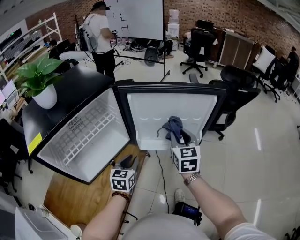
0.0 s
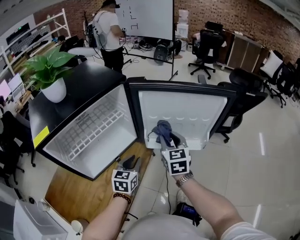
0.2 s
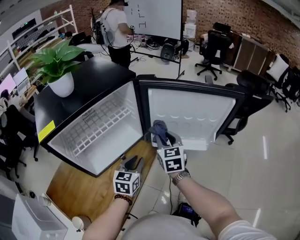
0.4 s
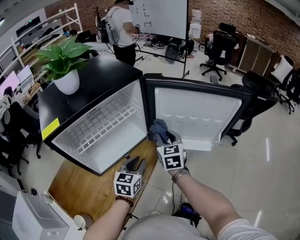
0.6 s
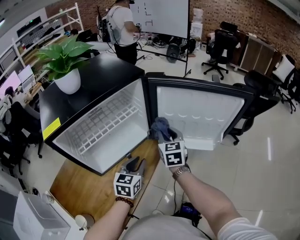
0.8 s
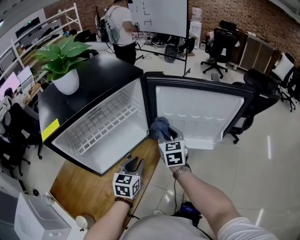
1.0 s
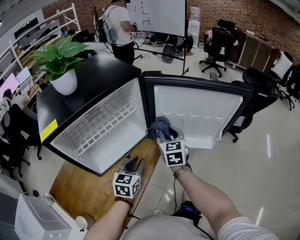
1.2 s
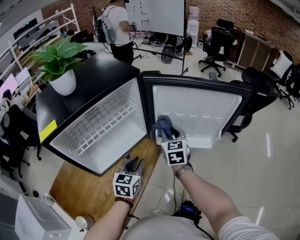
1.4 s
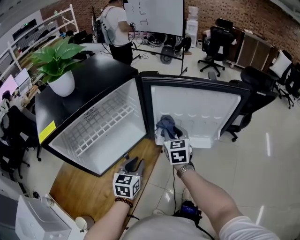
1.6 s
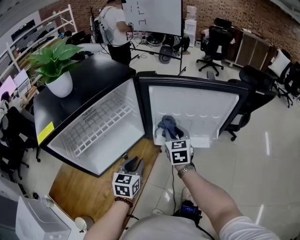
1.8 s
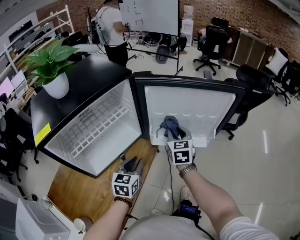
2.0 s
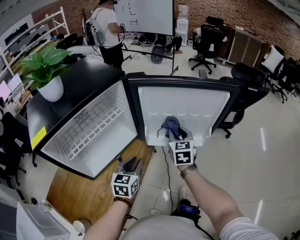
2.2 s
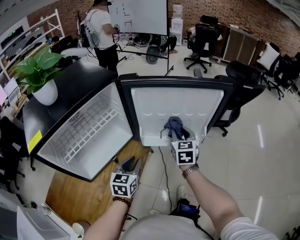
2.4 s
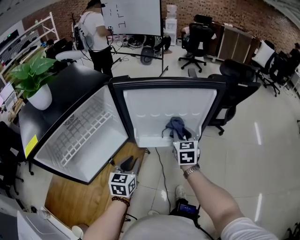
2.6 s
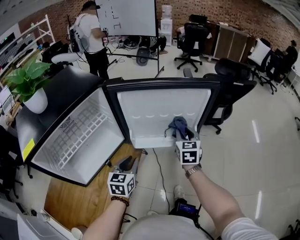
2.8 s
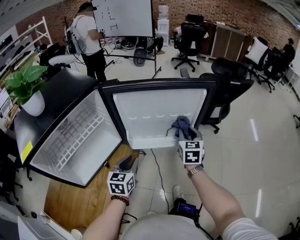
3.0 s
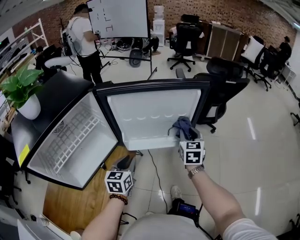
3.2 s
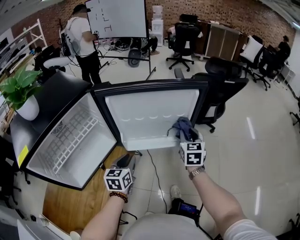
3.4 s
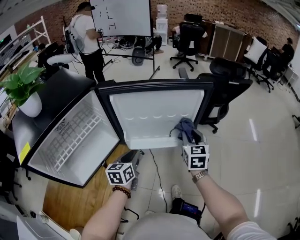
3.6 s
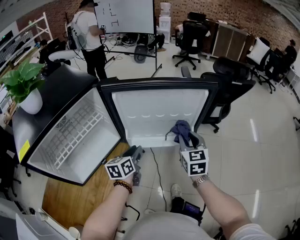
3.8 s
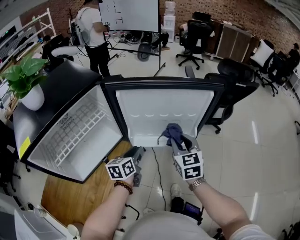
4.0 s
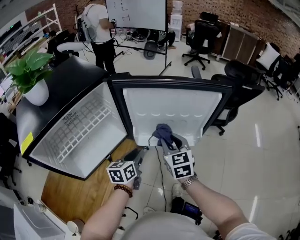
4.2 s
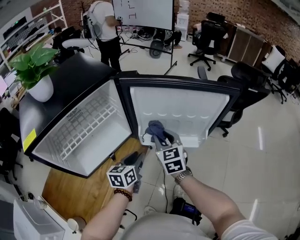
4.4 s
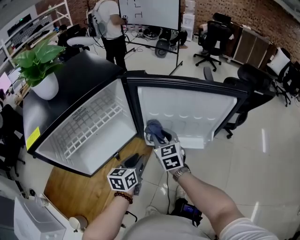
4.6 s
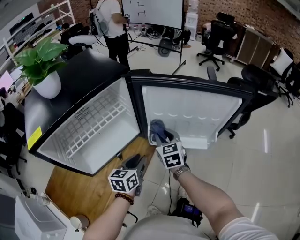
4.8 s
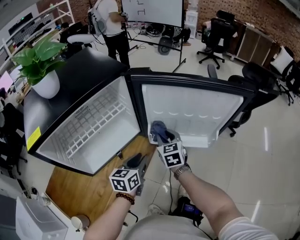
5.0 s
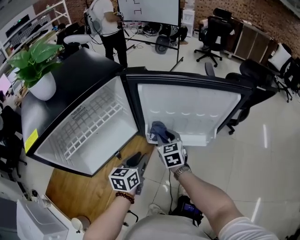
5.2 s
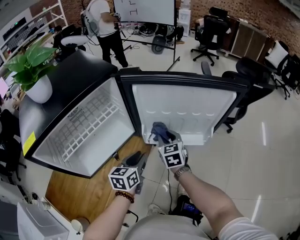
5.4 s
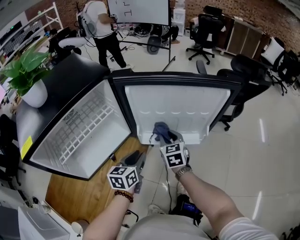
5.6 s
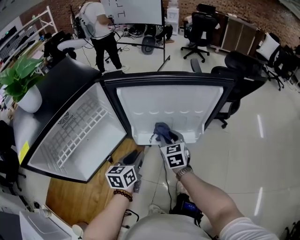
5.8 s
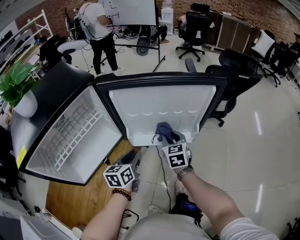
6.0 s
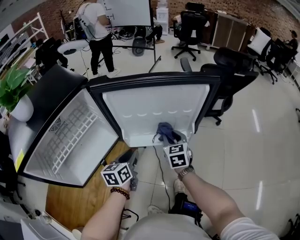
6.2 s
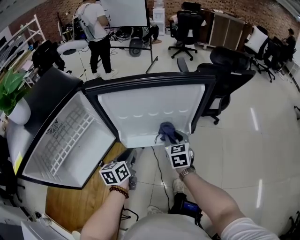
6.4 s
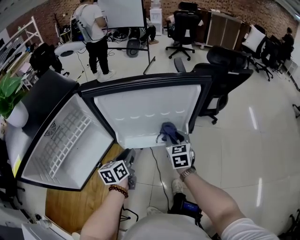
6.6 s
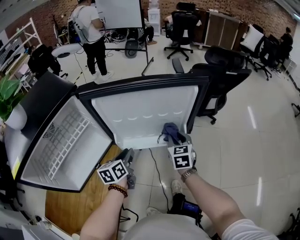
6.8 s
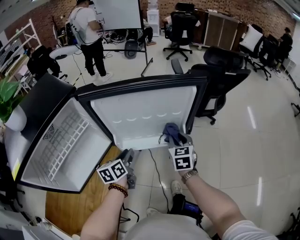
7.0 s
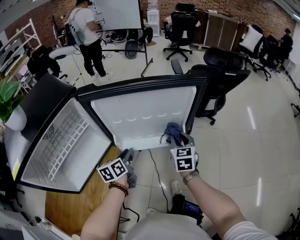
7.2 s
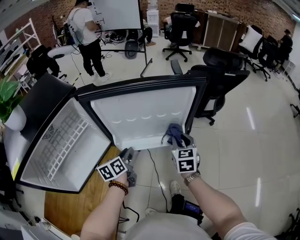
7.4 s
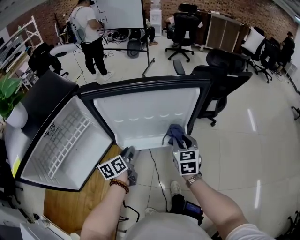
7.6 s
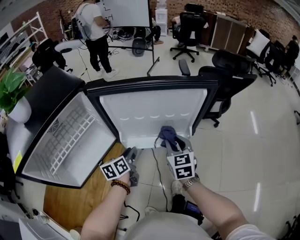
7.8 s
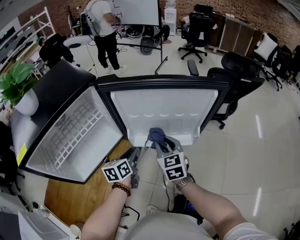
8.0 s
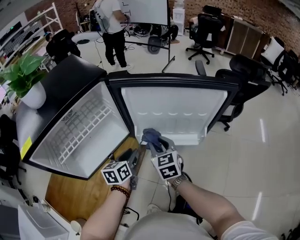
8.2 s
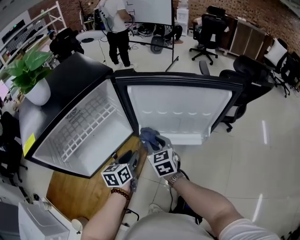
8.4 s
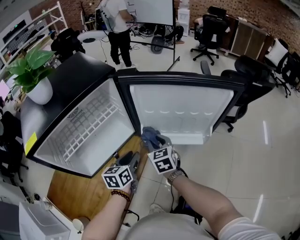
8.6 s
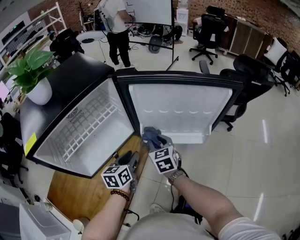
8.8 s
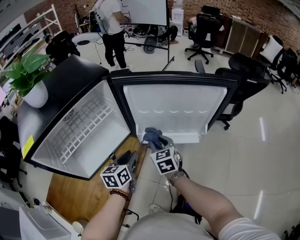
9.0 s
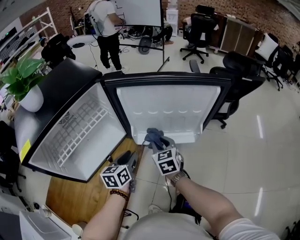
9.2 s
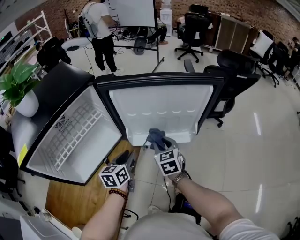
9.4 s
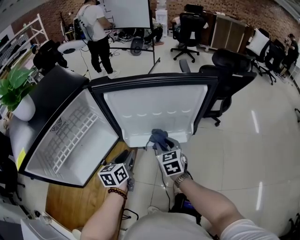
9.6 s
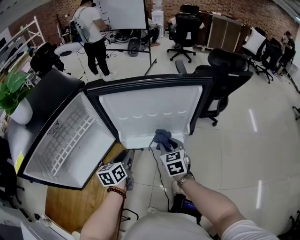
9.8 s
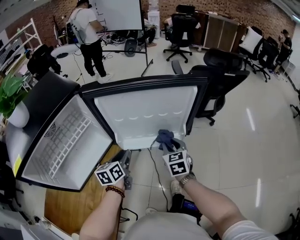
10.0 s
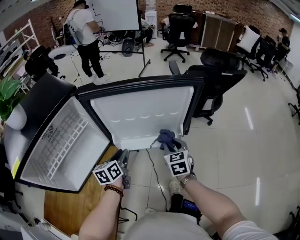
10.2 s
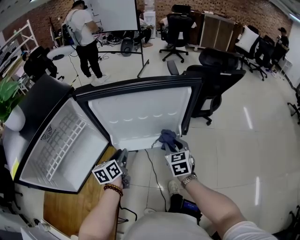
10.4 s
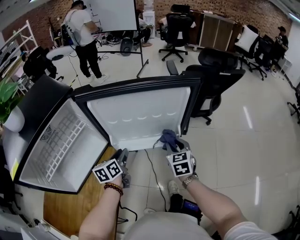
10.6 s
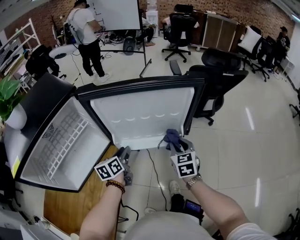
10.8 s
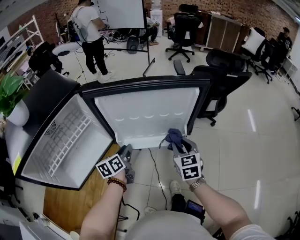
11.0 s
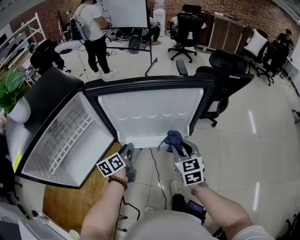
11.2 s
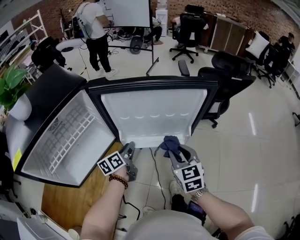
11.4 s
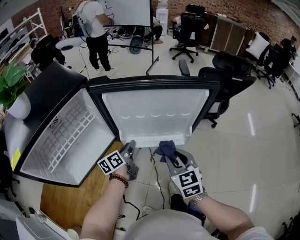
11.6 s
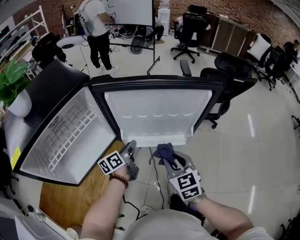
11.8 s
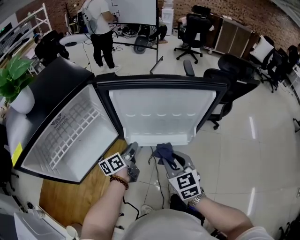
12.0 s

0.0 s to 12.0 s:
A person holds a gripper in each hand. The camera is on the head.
0.0 to 1.6 s: The left gripper shifts by about 5 cm; the right gripper travels to the left and downward by some 15 cm.
1.6 to 3.0 s: The left gripper is displaced to the right by roughly 10 cm; the right gripper moves to the right, roughly 20 cm.
3.0 to 4.4 s: The right gripper is displaced to the left by about 20 cm, and rotates some 30 degrees.
4.4 to 6.0 s: The right gripper is displaced to the right and downward by some 10 cm.
6.0 to 7.6 s: The right gripper shifts roughly 10 cm to the right, while the left gripper is displaced forward by some 5 cm.
7.6 to 9.0 s: The left gripper moves to the left and backward, approximately 10 cm, while the right gripper goes roughly 20 cm to the left, and turns by approximately 20 degrees.
9.0 to 10.4 s: The right gripper travels to the right by roughly 20 cm; the left gripper goes some 10 cm forward and to the right.
10.4 to 12.0 s: The left gripper rotates about 20 degrees; the right gripper moves backward, to the left and upward, approximately 15 cm.

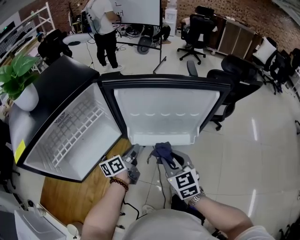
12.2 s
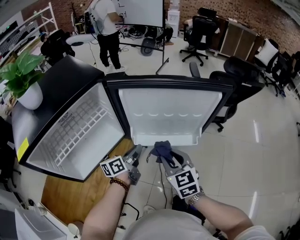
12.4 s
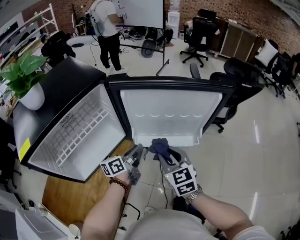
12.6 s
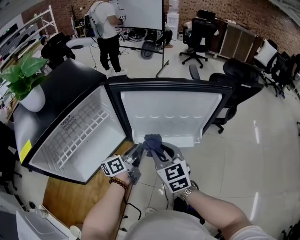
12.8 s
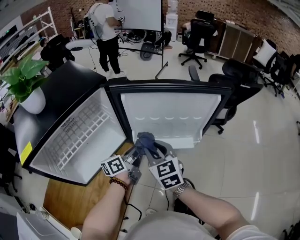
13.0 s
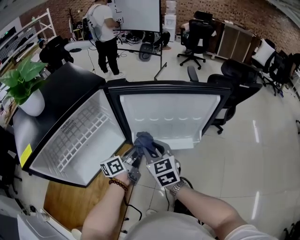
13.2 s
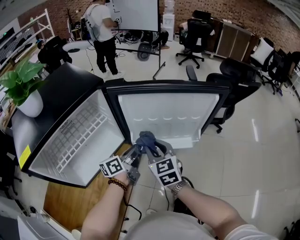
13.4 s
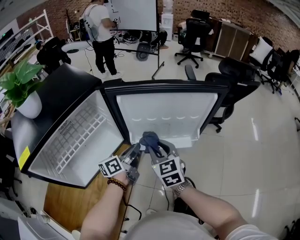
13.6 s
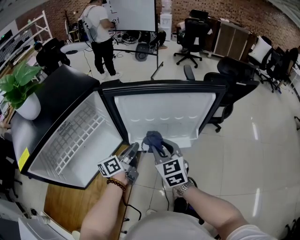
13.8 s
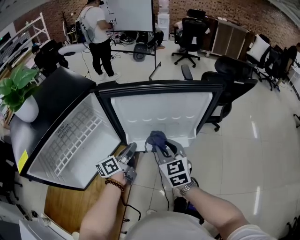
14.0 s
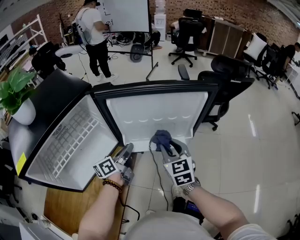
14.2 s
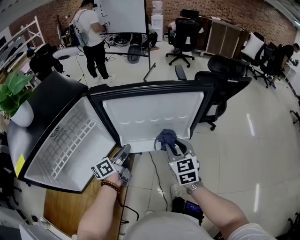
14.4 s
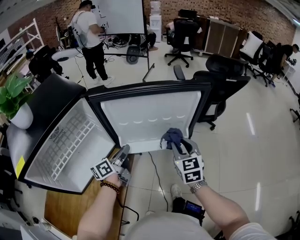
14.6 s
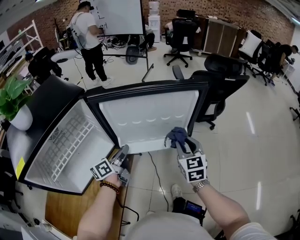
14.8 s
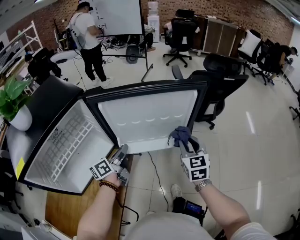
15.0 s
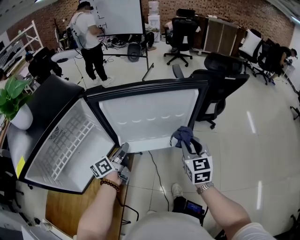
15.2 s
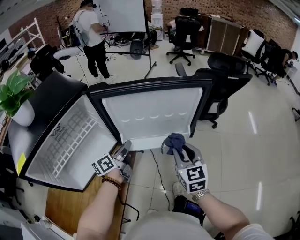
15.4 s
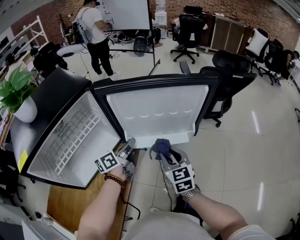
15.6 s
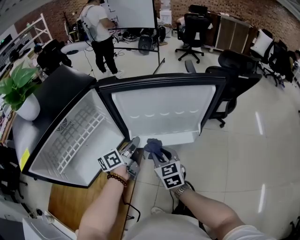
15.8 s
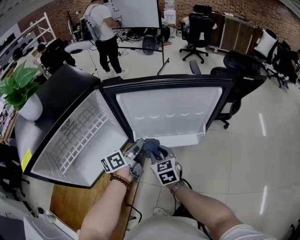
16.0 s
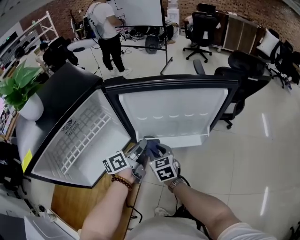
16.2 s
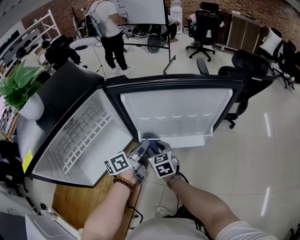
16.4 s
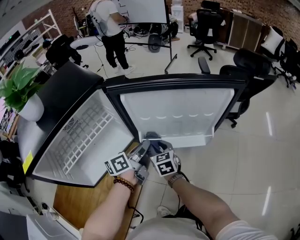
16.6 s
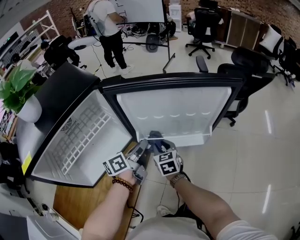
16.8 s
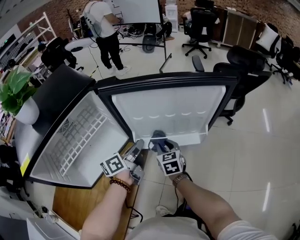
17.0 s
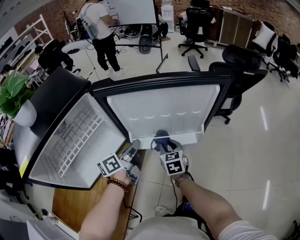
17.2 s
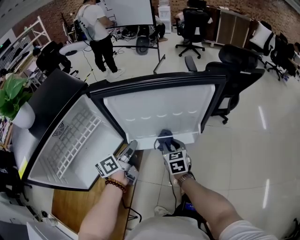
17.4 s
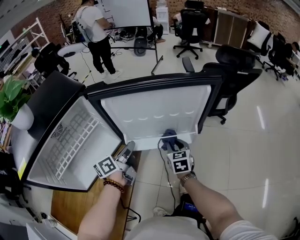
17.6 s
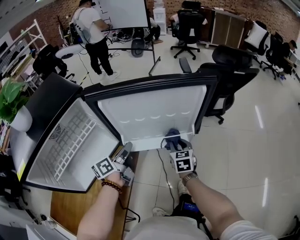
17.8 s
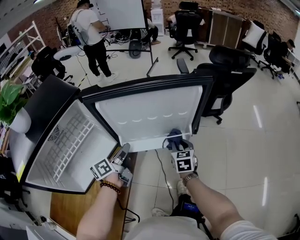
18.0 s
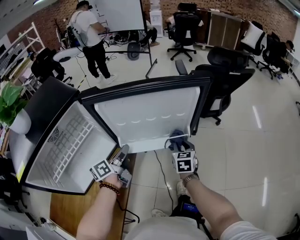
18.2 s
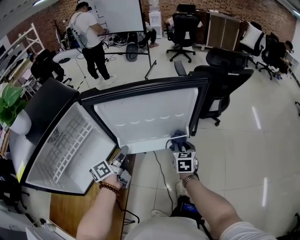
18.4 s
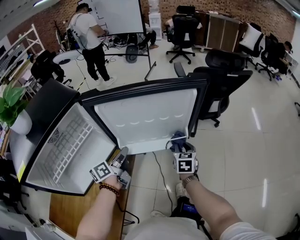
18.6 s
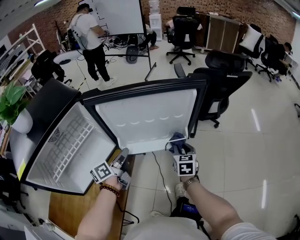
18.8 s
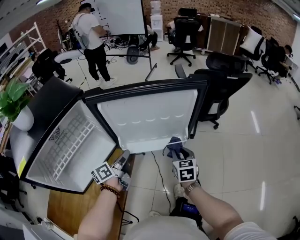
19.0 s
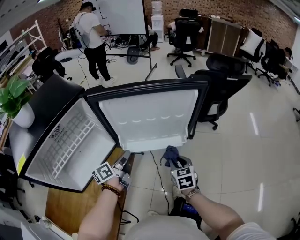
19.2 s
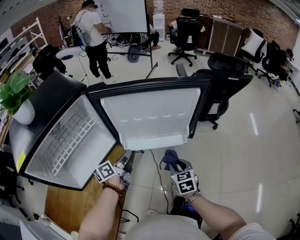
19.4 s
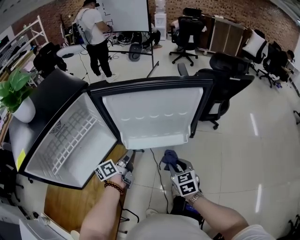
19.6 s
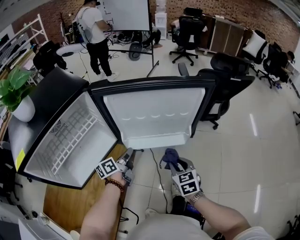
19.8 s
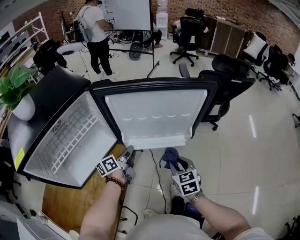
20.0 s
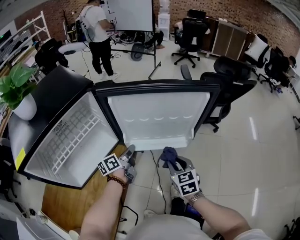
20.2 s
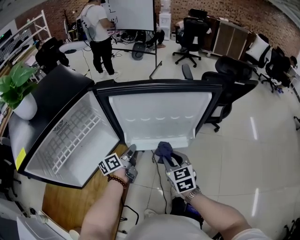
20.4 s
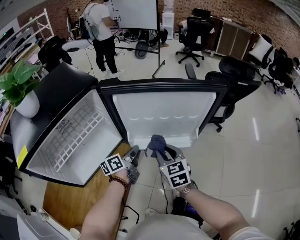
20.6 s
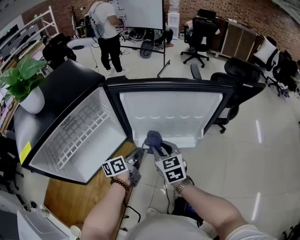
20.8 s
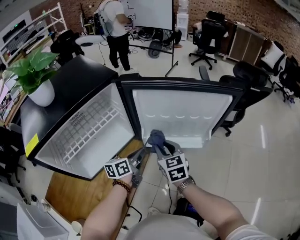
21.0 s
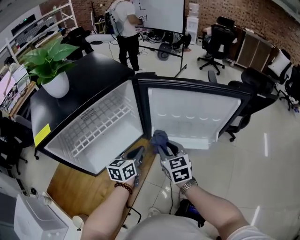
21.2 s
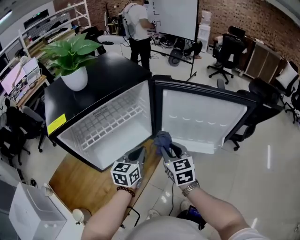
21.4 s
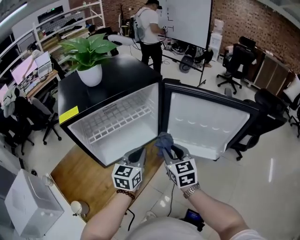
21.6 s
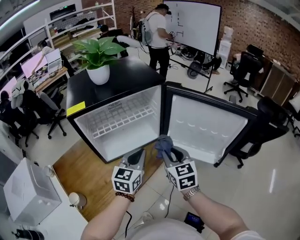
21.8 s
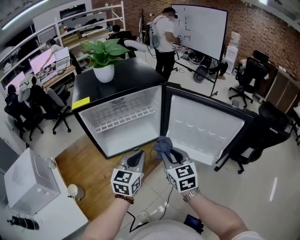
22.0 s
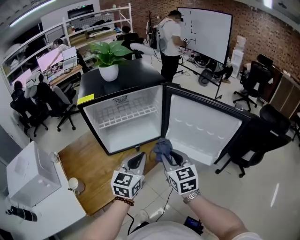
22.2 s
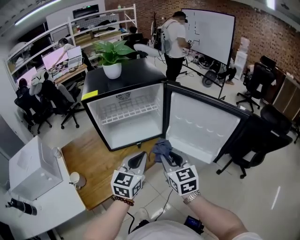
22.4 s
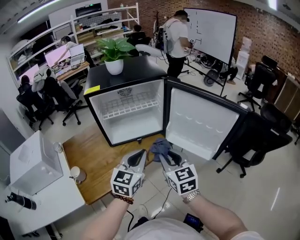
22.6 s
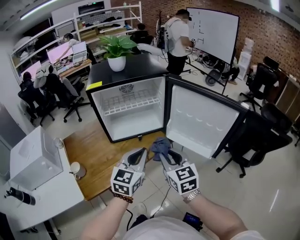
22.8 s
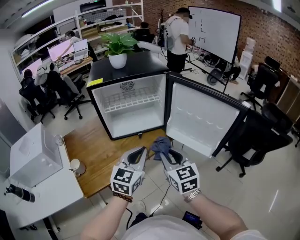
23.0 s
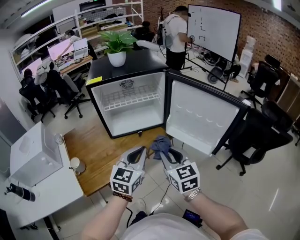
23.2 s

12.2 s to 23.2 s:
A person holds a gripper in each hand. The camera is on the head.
12.2 to 13.8 s: The left gripper goes roughly 5 cm upward, while the right gripper shifts roughly 5 cm forward.
13.8 to 15.4 s: The right gripper is displaced to the right by roughly 10 cm.
15.4 to 17.0 s: The right gripper travels to the left, downward and forward by some 20 cm.
17.0 to 18.4 s: The right gripper travels to the right by approximately 20 cm, and rotates about 20 degrees.
18.4 to 20.0 s: The left gripper is displaced downward by some 5 cm. The right gripper shifts approximately 10 cm backward, and rotates about 20 degrees.
20.0 to 21.6 s: The right gripper goes some 25 cm to the left and upward, and swivels some 30 degrees, while the left gripper goes about 20 cm upward, backward and to the left, and rolls clockwise, seen from behind, by roughly 50 degrees.
21.6 to 23.2 s: The two grippers go approximately 15 cm backward. The right gripper rotates roughly 20 degrees.

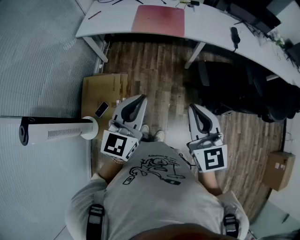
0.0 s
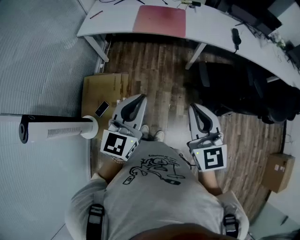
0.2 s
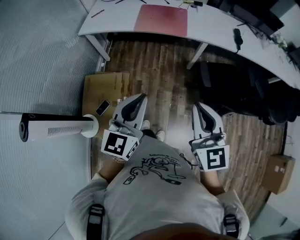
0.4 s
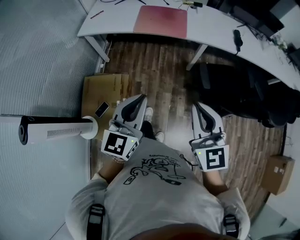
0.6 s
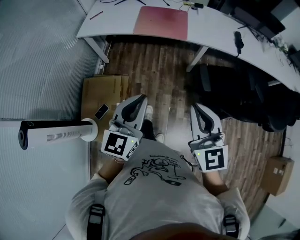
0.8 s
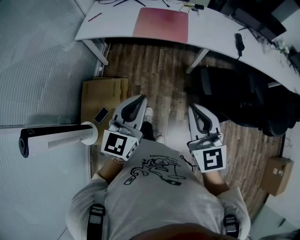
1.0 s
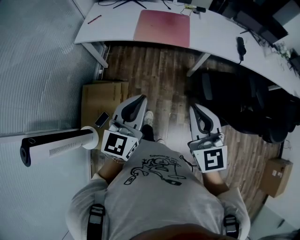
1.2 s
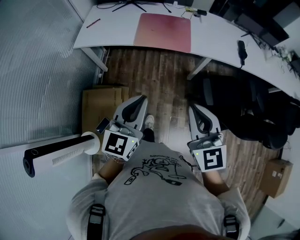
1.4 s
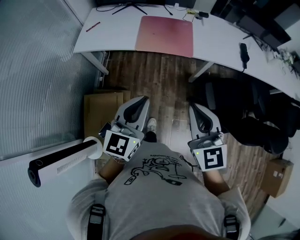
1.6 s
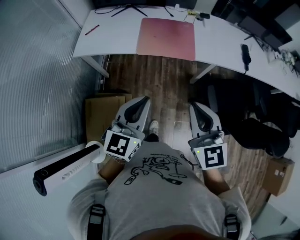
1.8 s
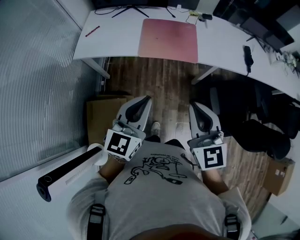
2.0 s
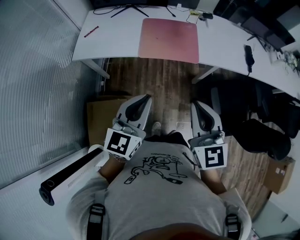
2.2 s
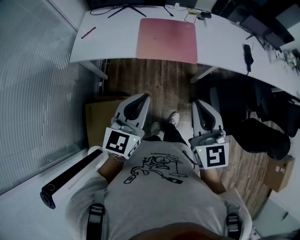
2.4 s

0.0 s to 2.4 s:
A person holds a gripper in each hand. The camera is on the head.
0.0 to 1.2 s: The grippers both shift forward by roughly 15 cm.
1.2 to 2.4 s: The right gripper is displaced forward and to the left by some 20 cm, while the left gripper moves forward, some 20 cm.
